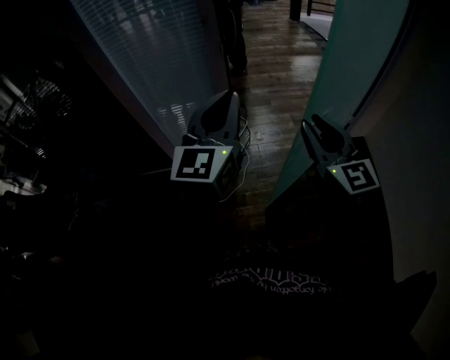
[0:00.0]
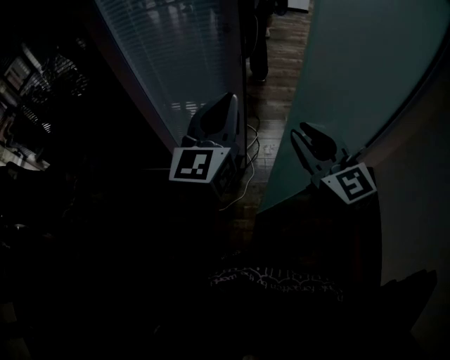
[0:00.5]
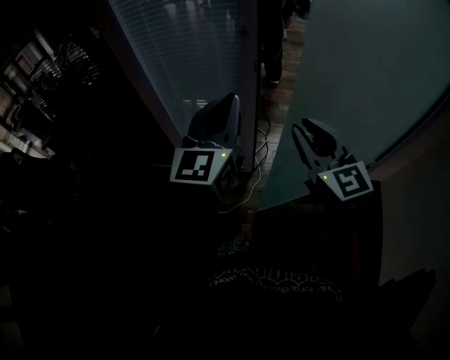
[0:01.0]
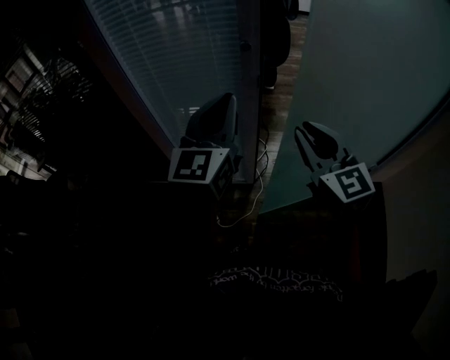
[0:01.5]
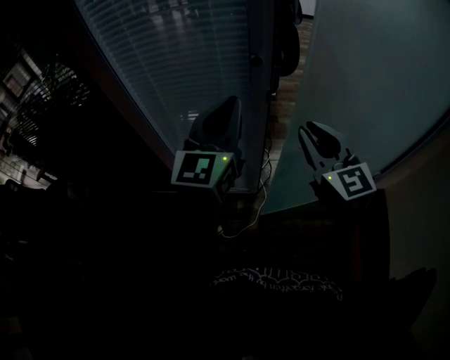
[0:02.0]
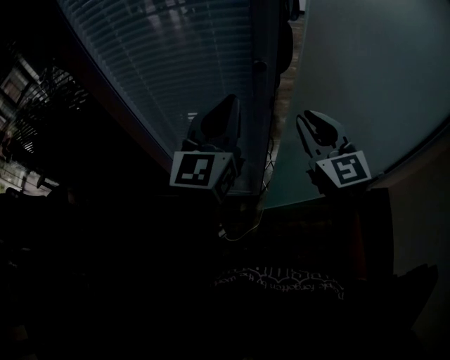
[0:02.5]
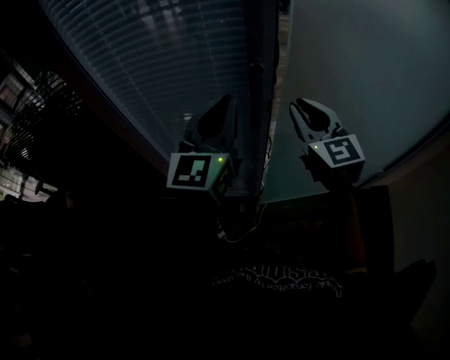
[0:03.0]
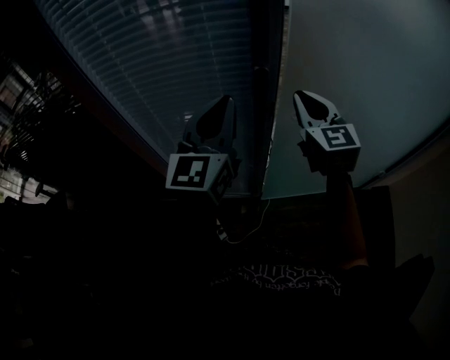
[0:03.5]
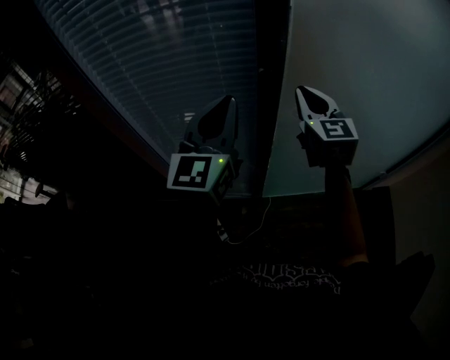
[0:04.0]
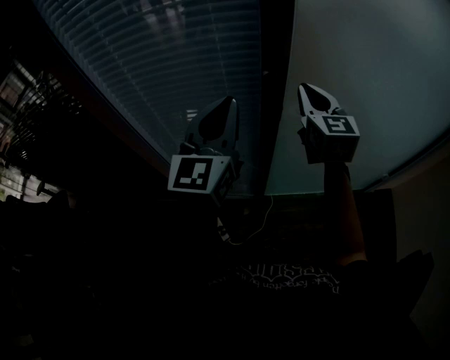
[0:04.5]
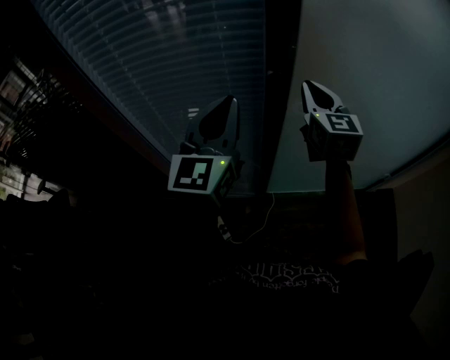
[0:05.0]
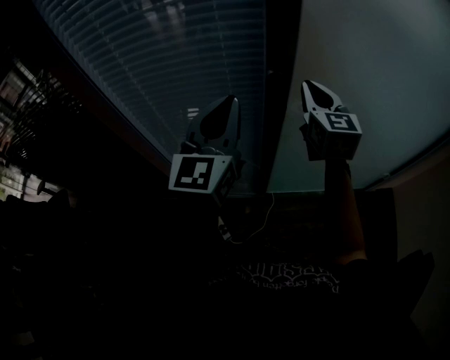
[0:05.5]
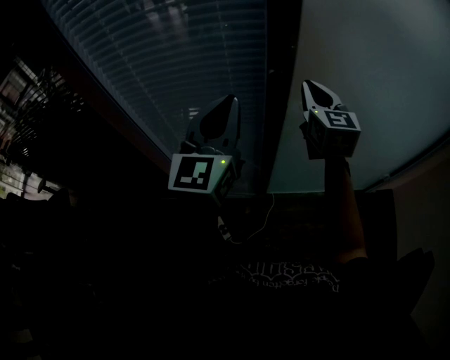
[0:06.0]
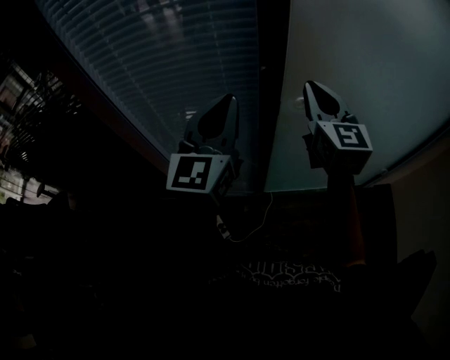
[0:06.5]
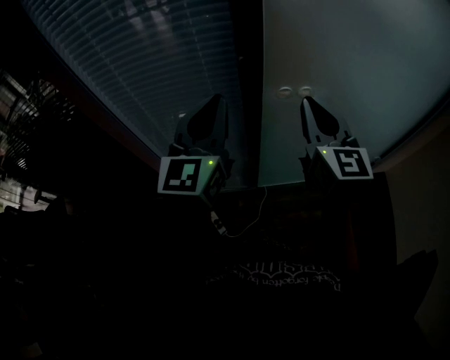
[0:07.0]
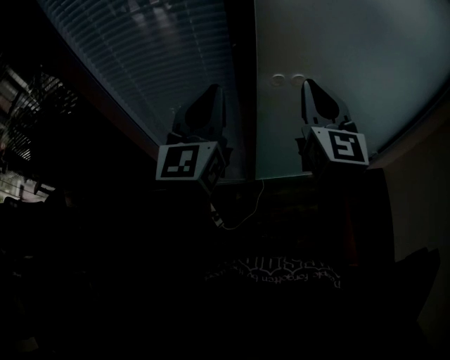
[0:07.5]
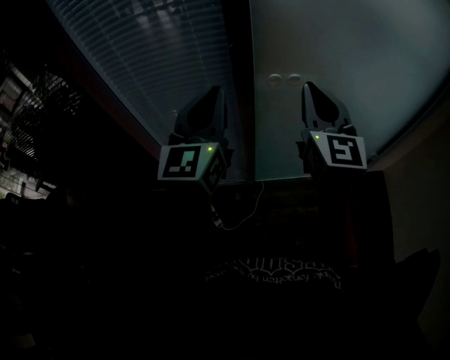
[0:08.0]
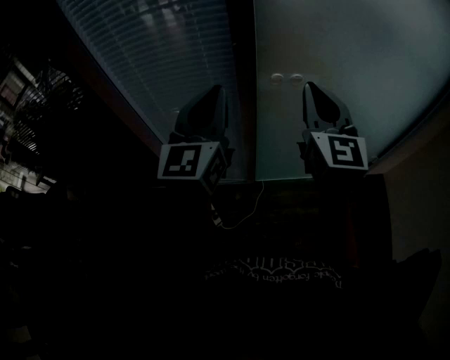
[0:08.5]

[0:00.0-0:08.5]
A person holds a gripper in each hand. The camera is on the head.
0:00.0 to 0:02.0: Both grippers move forward, some 25 cm.
0:02.0 to 0:04.0: The left gripper travels forward by approximately 10 cm. The right gripper shifts approximately 15 cm forward.
0:04.0 to 0:06.5: The grippers move only a little.
0:06.5 to 0:08.5: The right gripper shifts some 15 cm backward and to the right; the left gripper heads backward, covering approximately 10 cm.

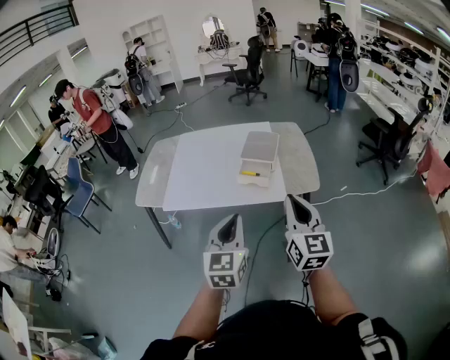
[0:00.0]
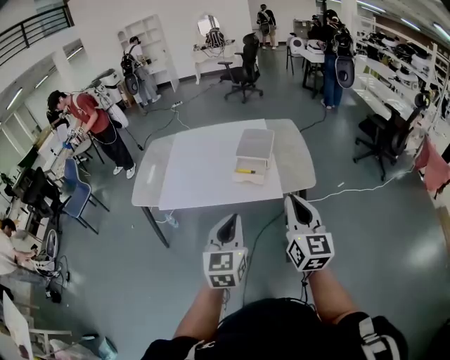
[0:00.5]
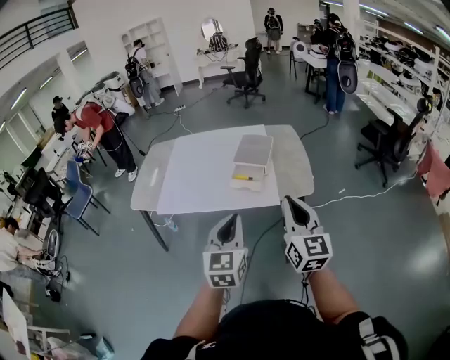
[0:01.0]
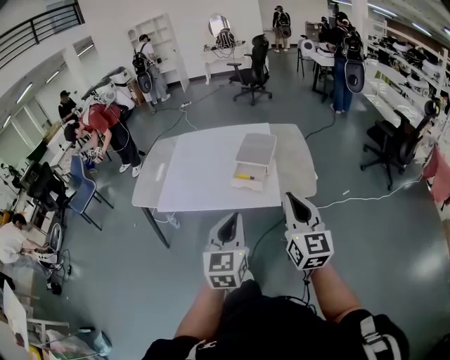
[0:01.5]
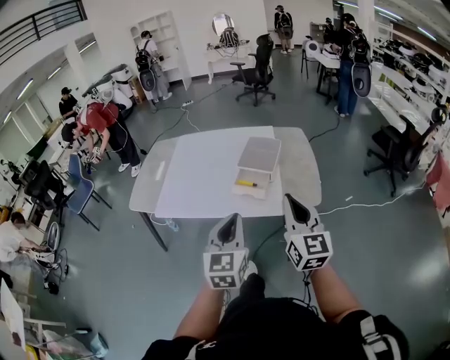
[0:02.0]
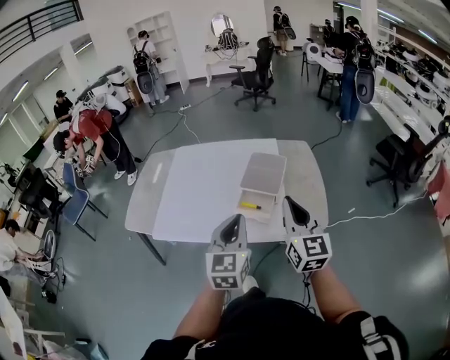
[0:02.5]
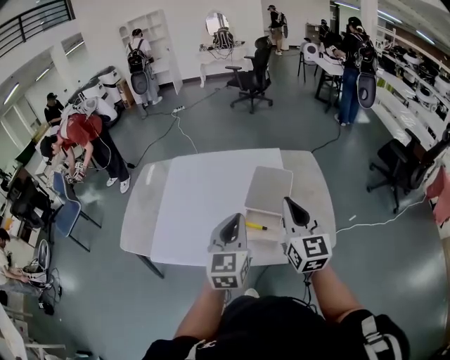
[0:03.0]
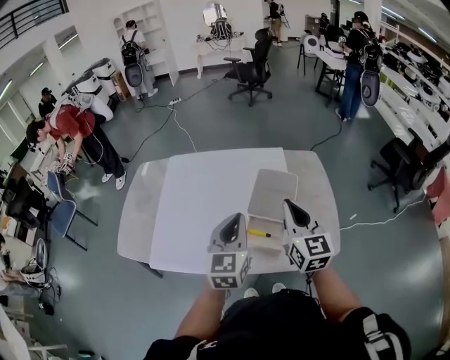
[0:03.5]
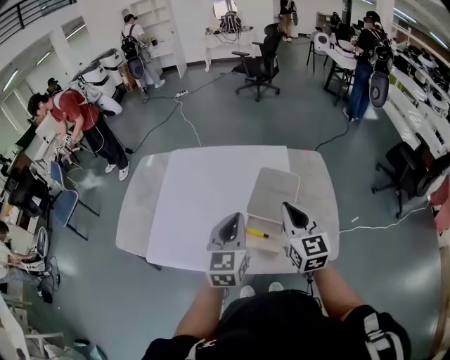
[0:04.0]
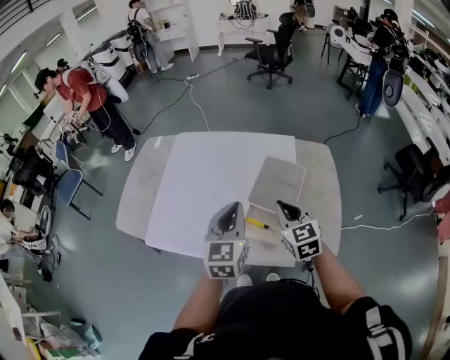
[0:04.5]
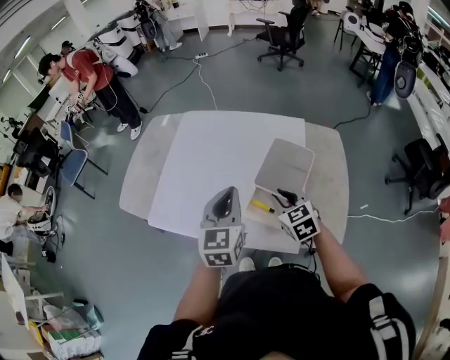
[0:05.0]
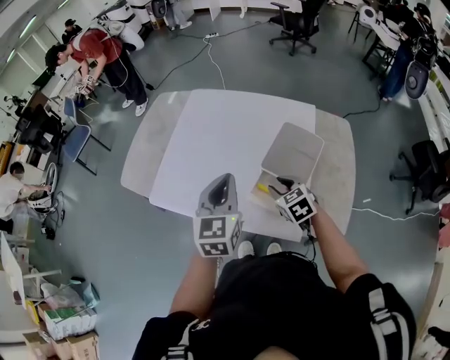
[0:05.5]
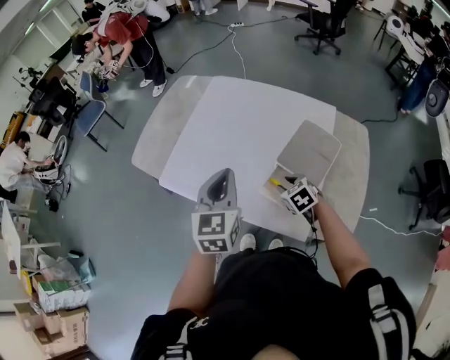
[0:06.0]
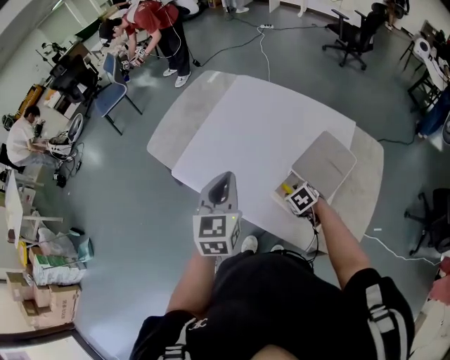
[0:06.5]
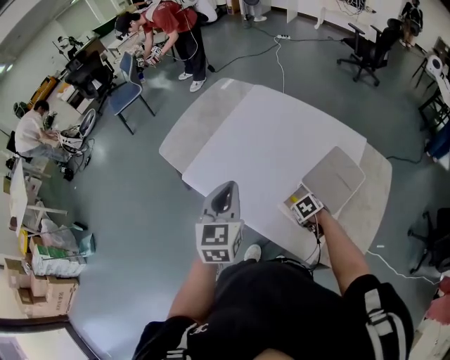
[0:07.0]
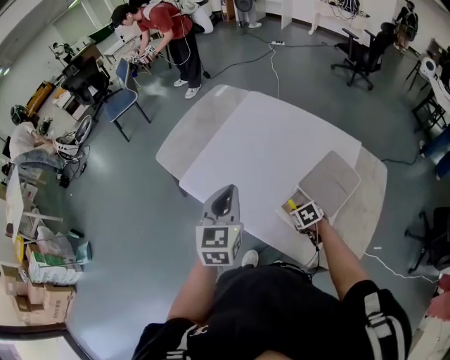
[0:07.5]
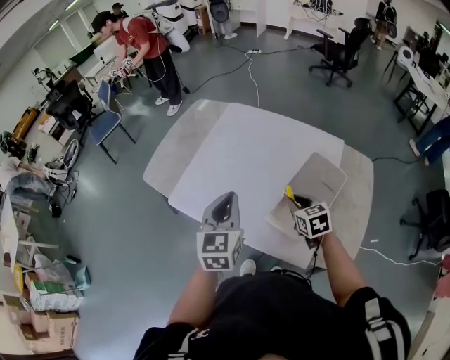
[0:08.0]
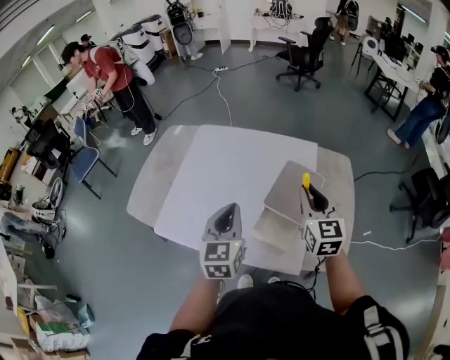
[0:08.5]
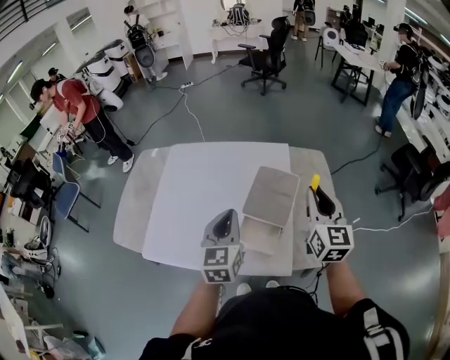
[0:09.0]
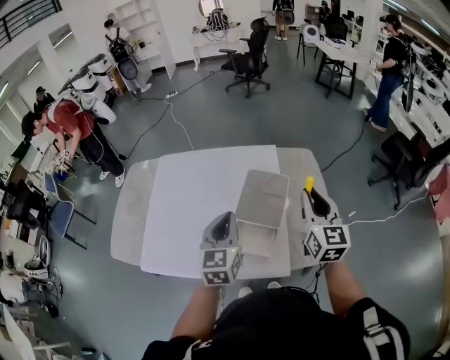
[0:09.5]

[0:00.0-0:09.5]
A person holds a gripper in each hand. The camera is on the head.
0:00.0 to 0:02.0: Both grippers travel together forward, approximately 10 cm.
0:02.0 to 0:04.0: The grippers both shift forward by approximately 30 cm.
0:04.0 to 0:05.5: The left gripper travels to the left by approximately 5 cm. Meanwhile the right gripper shifts roughly 20 cm downward, points its fingers about 40 degrees further downward, and opens up.
0:05.5 to 0:07.5: The right gripper is displaced downward by roughly 10 cm, and turns by about 20 degrees; the left gripper shifts about 10 cm to the left.
0:07.5 to 0:09.5: The right gripper is displaced upward by roughly 35 cm, and tips its fingers upward by some 60 degrees. The left gripper moves approximately 20 cm, and turns by some 30 degrees.

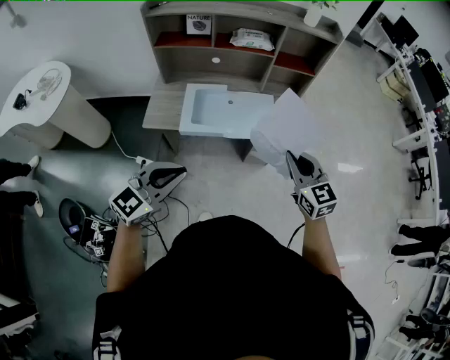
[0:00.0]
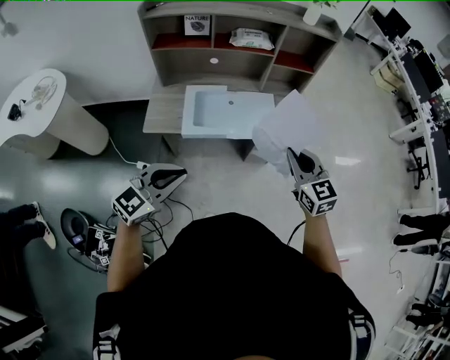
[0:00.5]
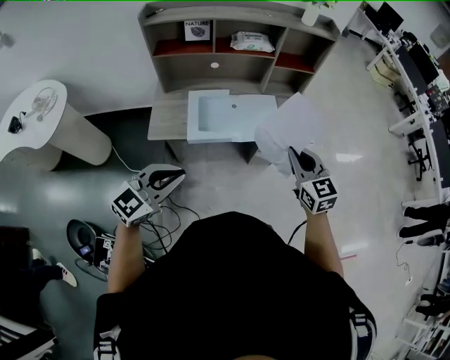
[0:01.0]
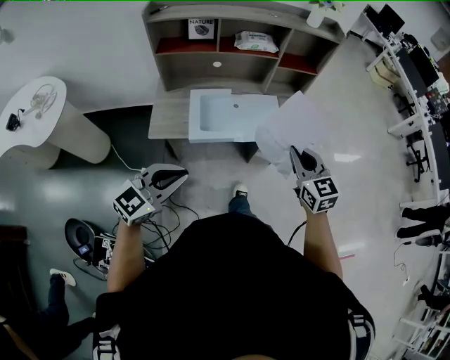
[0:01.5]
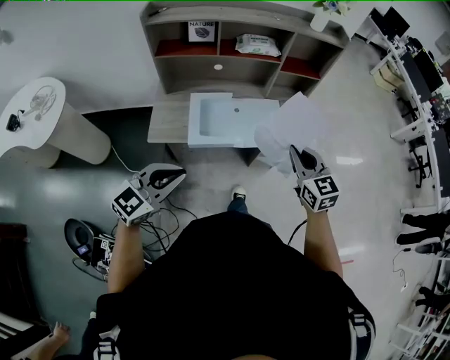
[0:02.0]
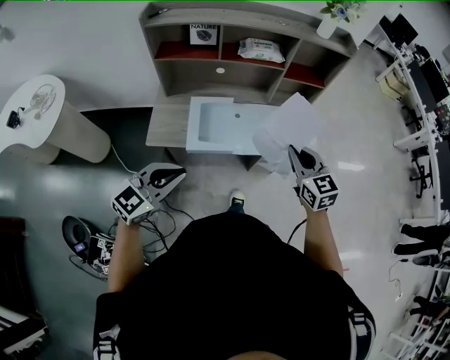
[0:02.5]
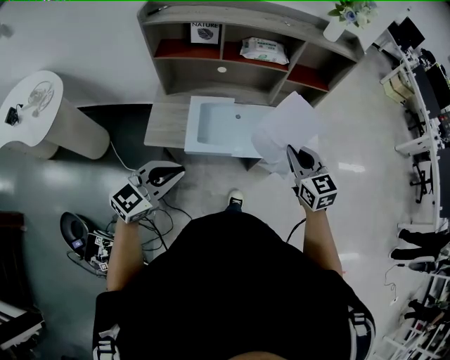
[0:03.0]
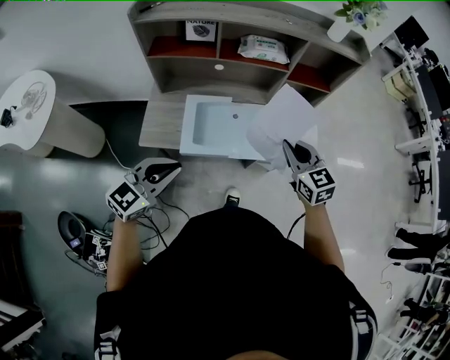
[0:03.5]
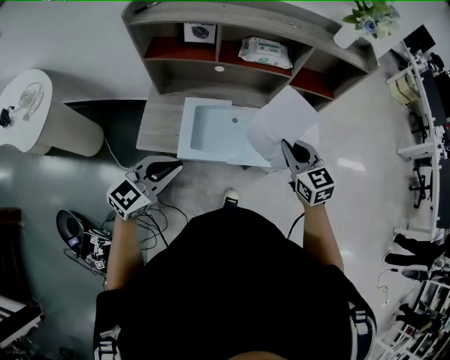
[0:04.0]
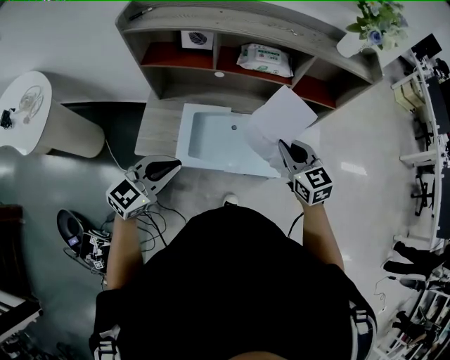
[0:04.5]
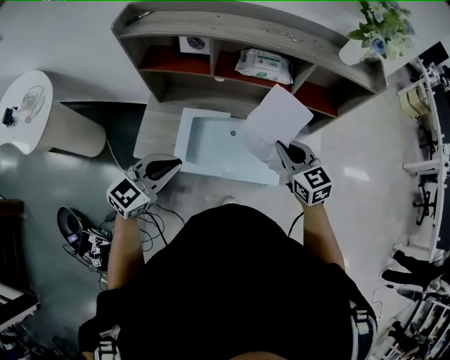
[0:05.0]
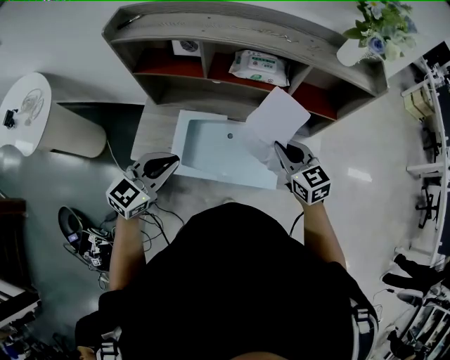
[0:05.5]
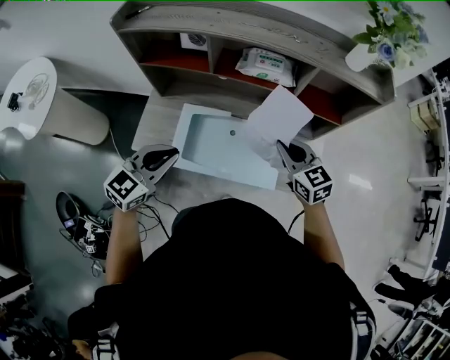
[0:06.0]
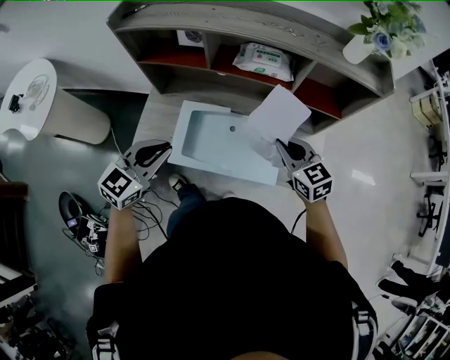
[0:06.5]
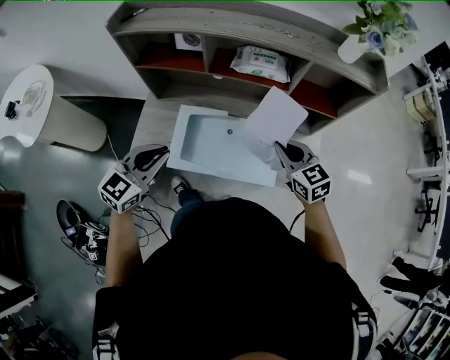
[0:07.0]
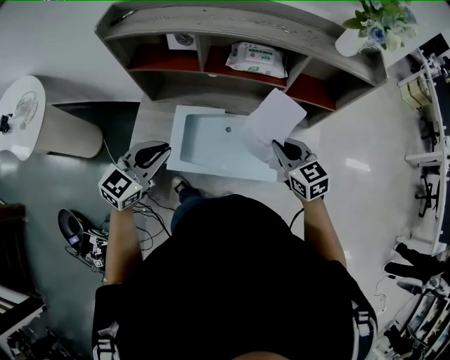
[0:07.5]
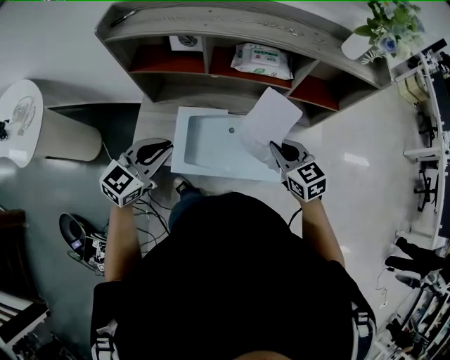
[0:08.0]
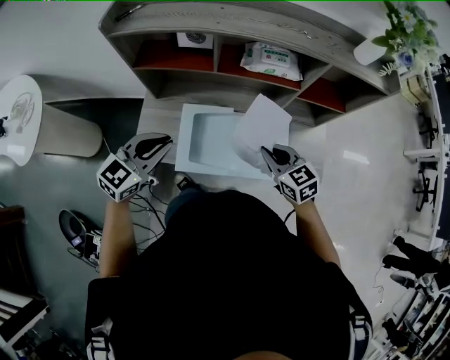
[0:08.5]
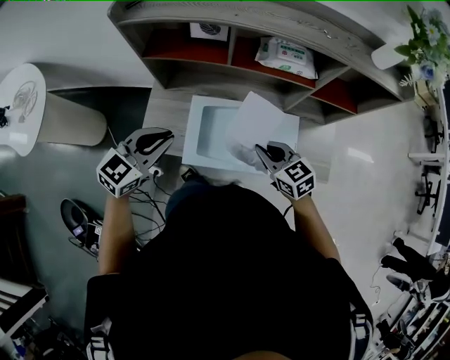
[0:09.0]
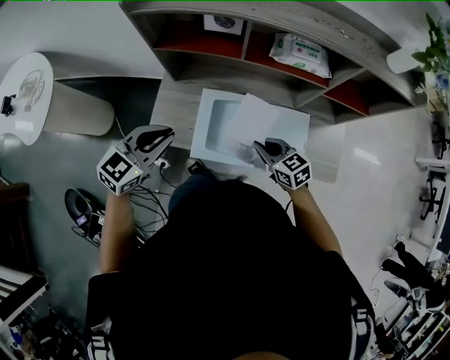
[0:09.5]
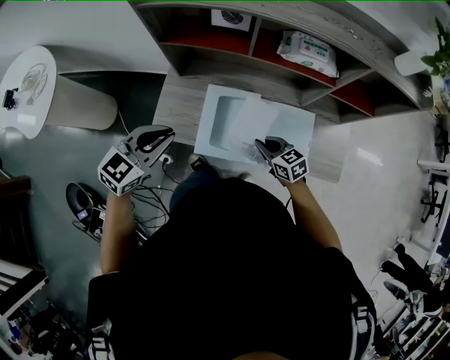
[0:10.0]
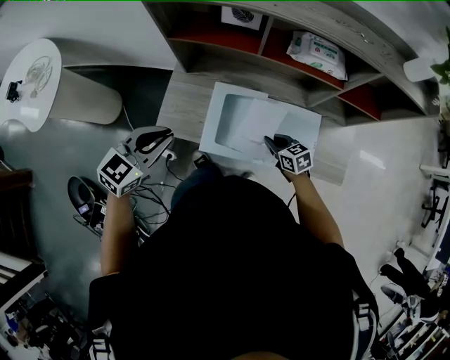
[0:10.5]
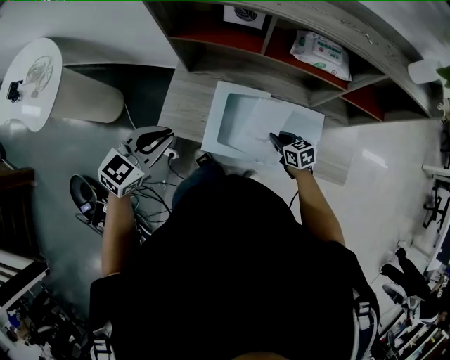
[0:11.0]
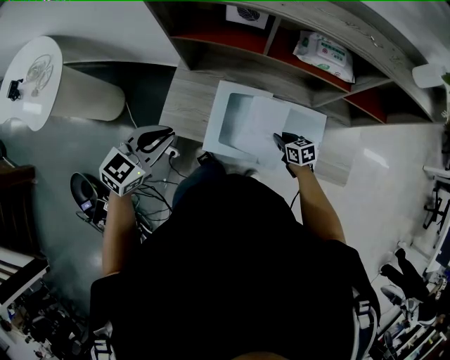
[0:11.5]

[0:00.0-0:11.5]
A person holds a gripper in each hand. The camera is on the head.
0:00.0 to 0:02.0: Both grippers move to the left, about 10 cm.
0:02.0 to 0:04.0: Both grippers travel together forward, approximately 15 cm.
0:04.0 to 0:06.0: The grippers both shift forward by approximately 10 cm.
0:06.0 to 0:07.5: The grippers move only a little.
0:07.5 to 0:09.5: The left gripper is displaced to the left by some 10 cm. The right gripper heads to the left and downward, covering roughly 20 cm.
0:09.5 to 0:11.5: The left gripper shifts by some 5 cm; the right gripper shifts about 15 cm downward.
